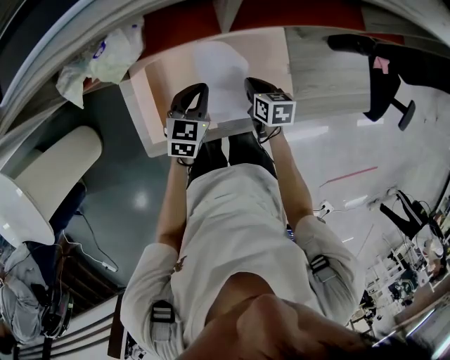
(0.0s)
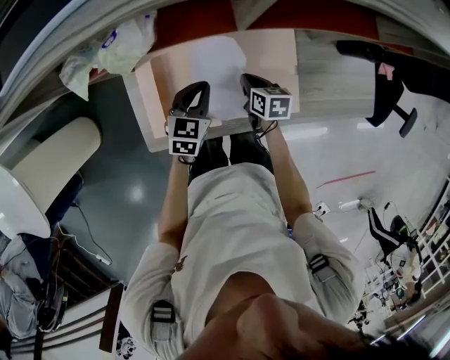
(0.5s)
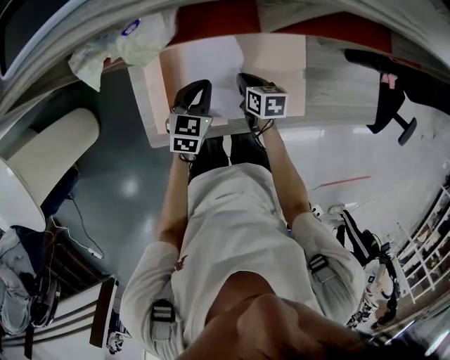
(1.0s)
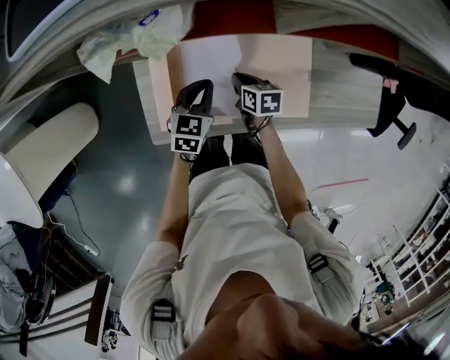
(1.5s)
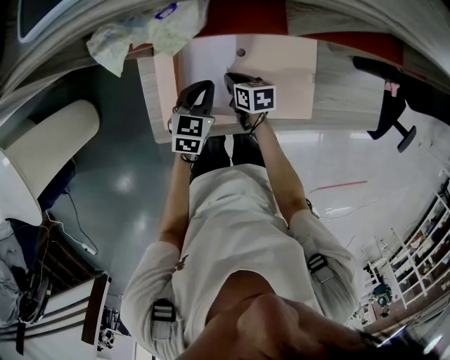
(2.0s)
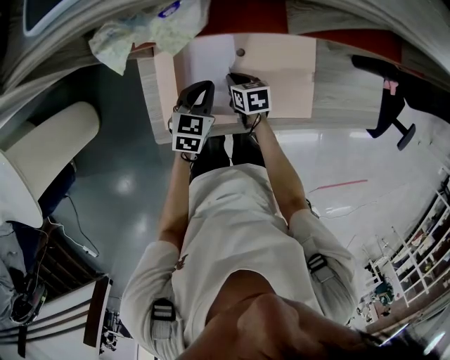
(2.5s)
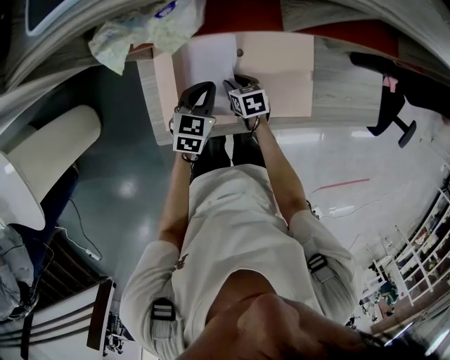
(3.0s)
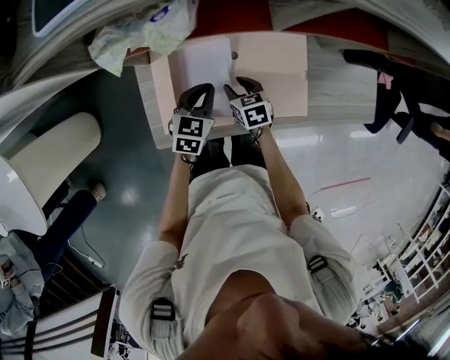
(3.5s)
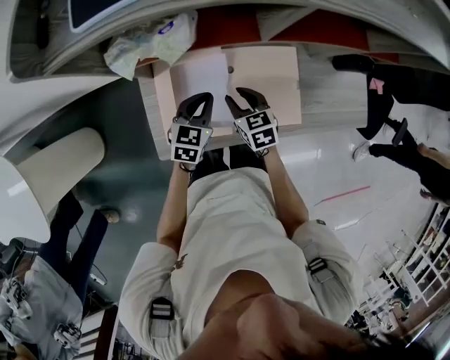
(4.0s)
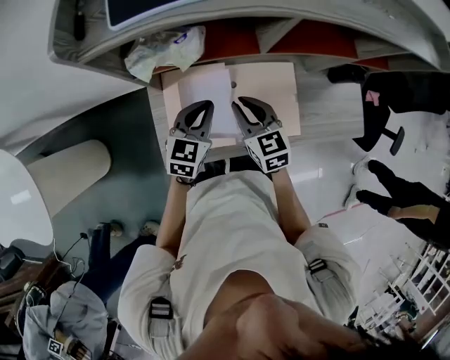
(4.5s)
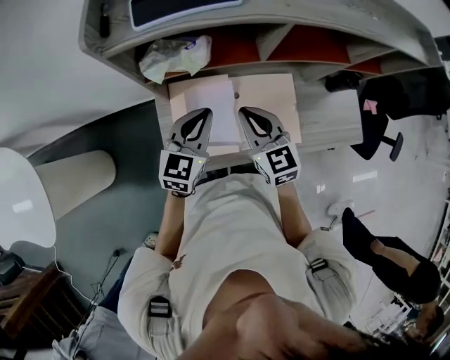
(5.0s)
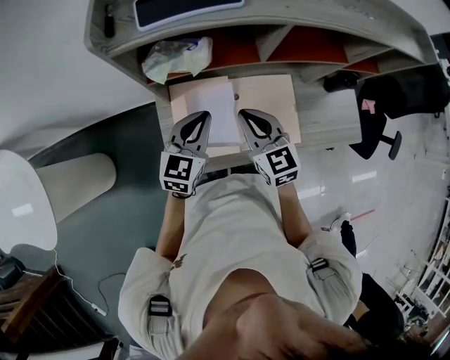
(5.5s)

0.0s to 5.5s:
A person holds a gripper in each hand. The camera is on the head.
0.0s to 2.0s: The right gripper goes some 15 cm to the left. The left gripper shifts about 5 cm to the left.
2.0s to 3.5s: The right gripper swivels some 20 degrees, and opens.
3.5s to 5.5s: Both grippers travel together upward, some 25 cm. The right gripper angles its fingers upward, by about 30 degrees, and closes its fingers. The left gripper changes its angle by some 20 degrees.

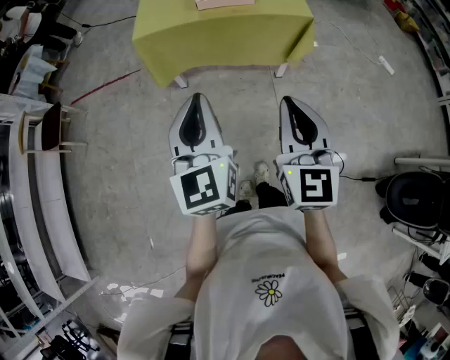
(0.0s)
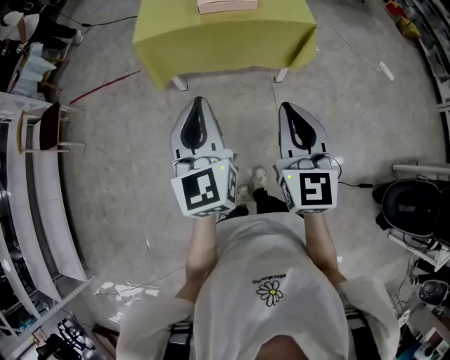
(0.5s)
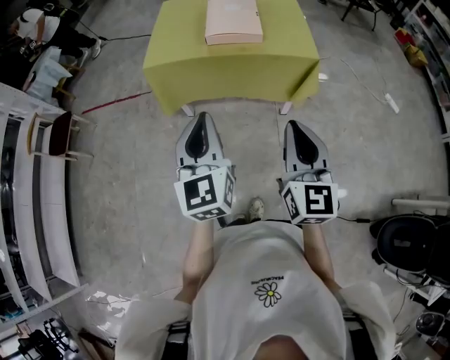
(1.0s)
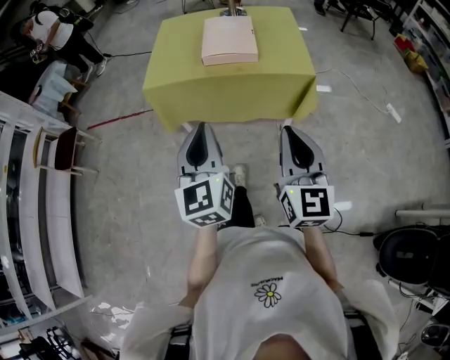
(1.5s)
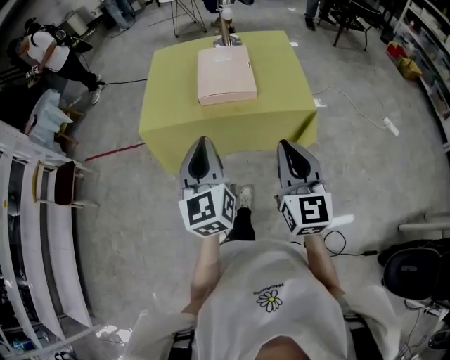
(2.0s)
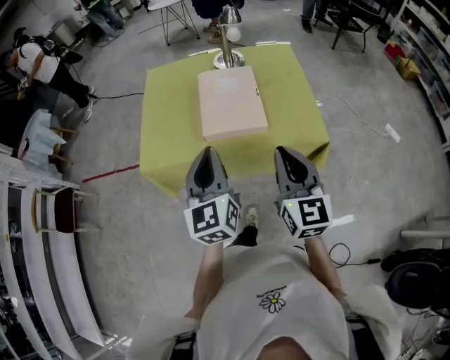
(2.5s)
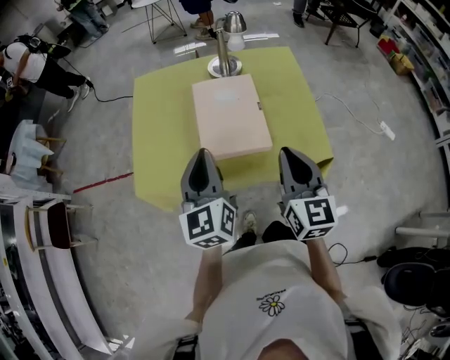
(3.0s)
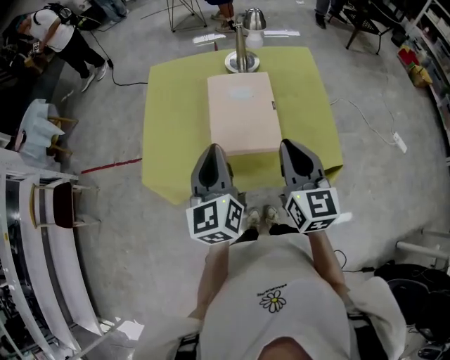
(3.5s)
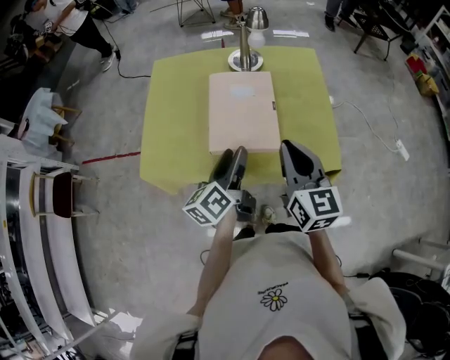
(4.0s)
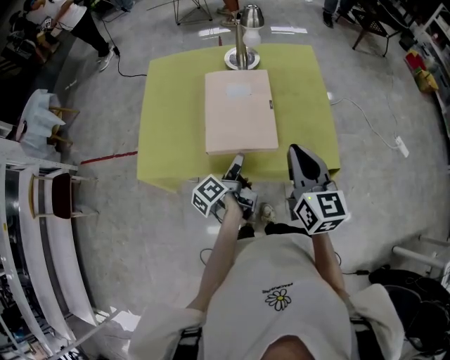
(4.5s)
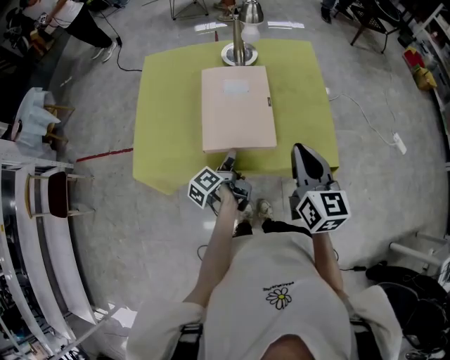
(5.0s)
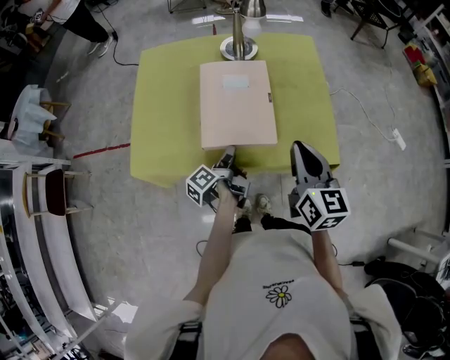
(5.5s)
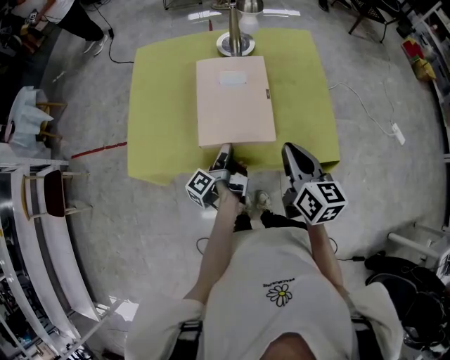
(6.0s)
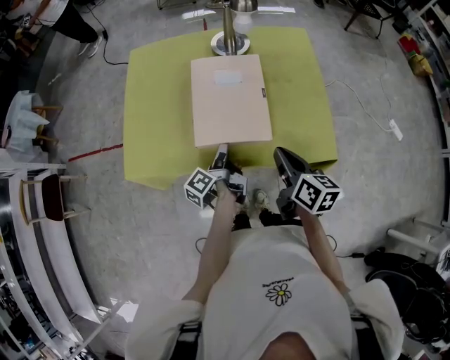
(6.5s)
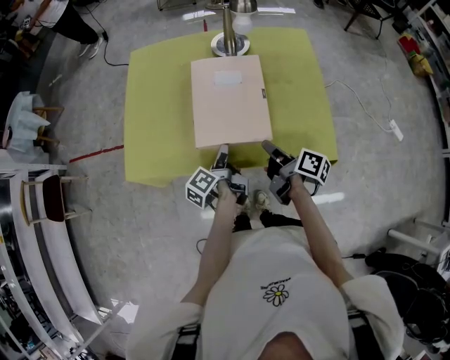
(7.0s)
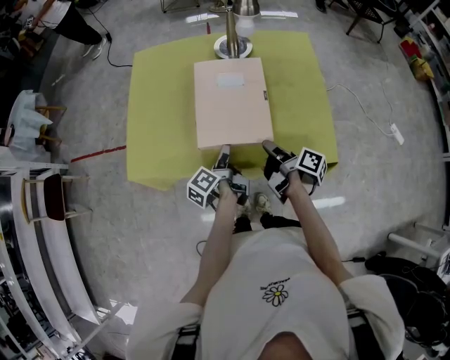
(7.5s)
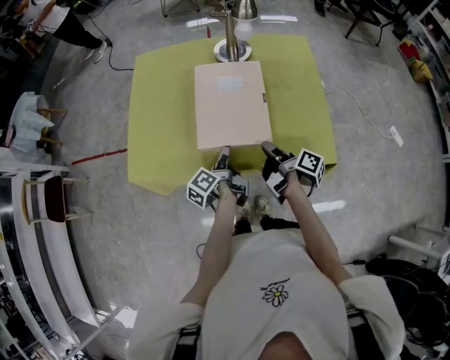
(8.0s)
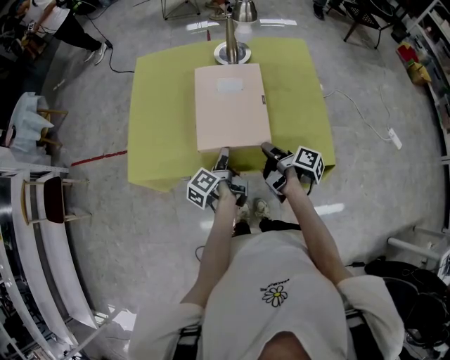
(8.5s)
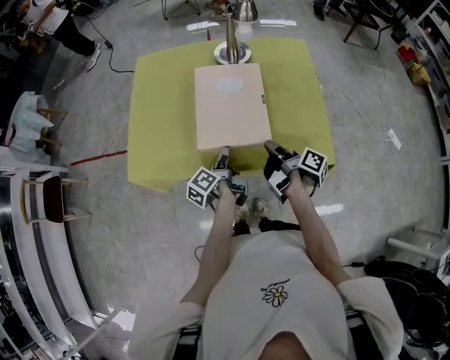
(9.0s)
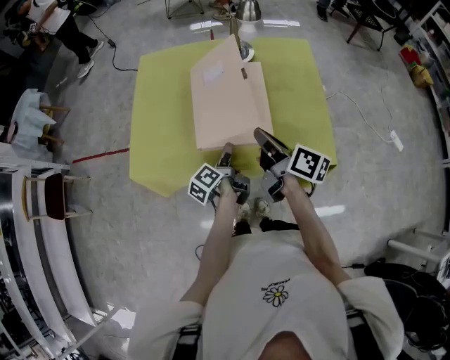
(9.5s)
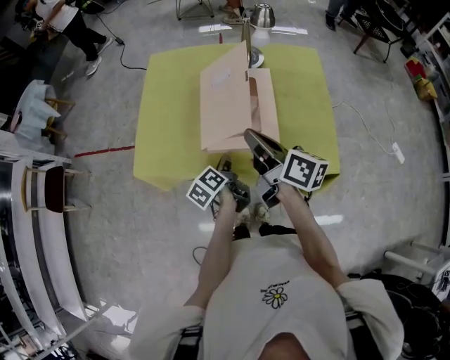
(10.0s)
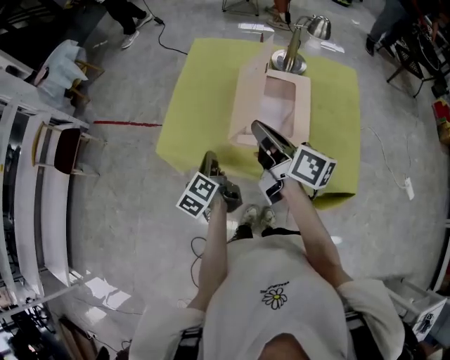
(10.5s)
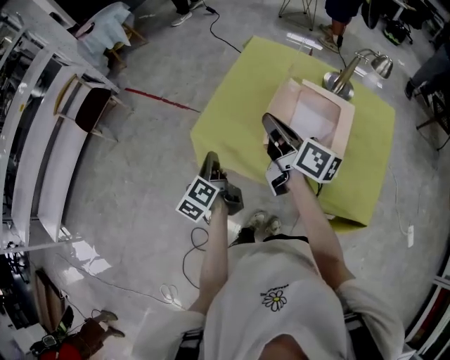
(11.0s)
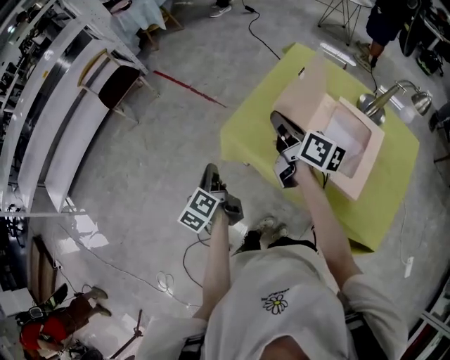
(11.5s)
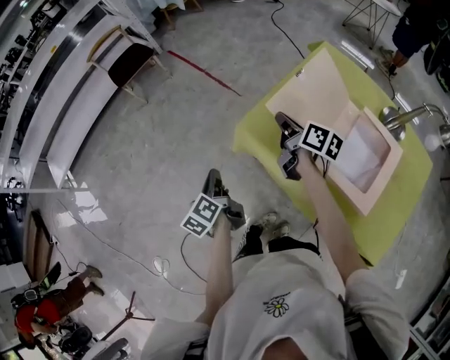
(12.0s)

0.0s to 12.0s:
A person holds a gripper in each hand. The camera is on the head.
0.0s to 2.0s: The two grippers go roughly 25 cm forward.
2.0s to 4.0s: Both grippers travel together forward, approximately 30 cm. The left gripper twists some 50 degrees counterclockwise, seen from behind, and opens its fingers.
4.0s to 6.0s: The left gripper is displaced downward by about 15 cm, and rotates around the line of its fingers by roughly 50 degrees, counterclockwise from behind; the right gripper shifts roughly 10 cm downward.
6.0s to 8.0s: The right gripper is displaced downward by roughly 15 cm, and rotates around the line of its fingers by roughly 60 degrees, clockwise from behind.
8.0s to 10.0s: The left gripper closes up; the right gripper is displaced upward and to the left by approximately 20 cm, and turns by about 40 degrees.
10.0s to 12.0s: The left gripper ends up roughly 40 cm from where it was, and turns by some 50 degrees, while the right gripper changes place by approximately 35 cm, and turns by some 40 degrees.

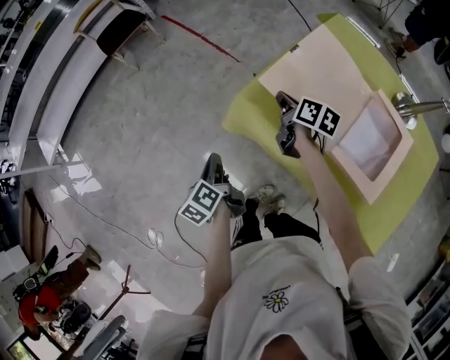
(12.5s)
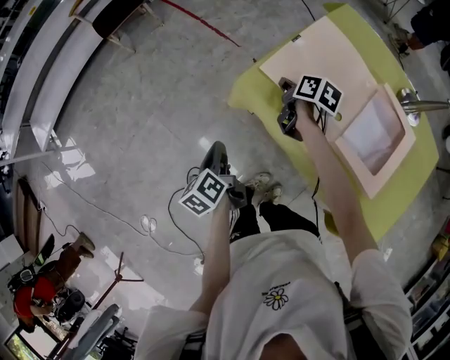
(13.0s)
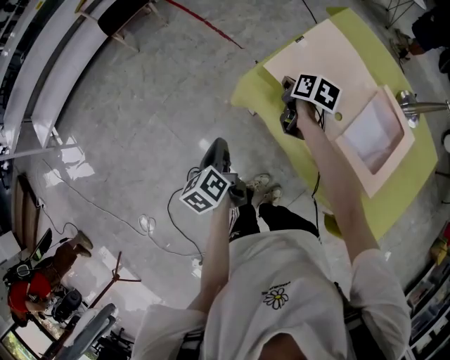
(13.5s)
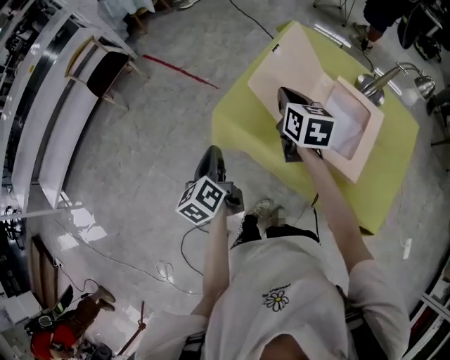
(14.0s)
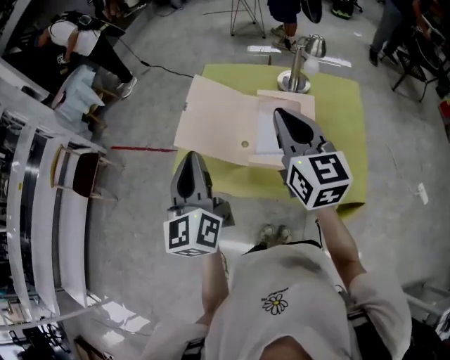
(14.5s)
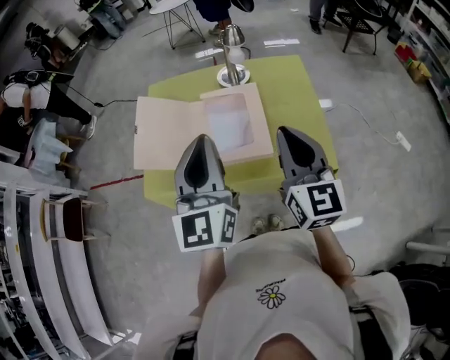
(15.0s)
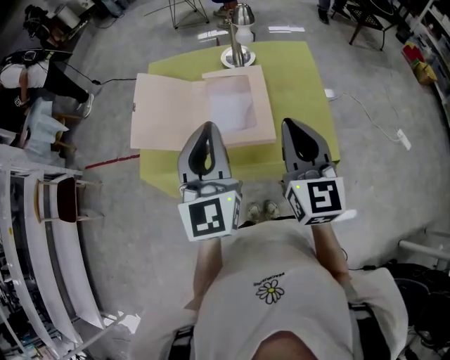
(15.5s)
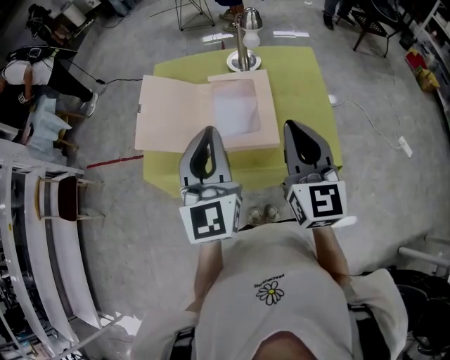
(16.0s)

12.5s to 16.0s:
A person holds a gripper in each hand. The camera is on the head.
12.5s to 14.5s: Both grippers move upward, approximately 30 cm. The left gripper tilts its fingers roughly 30 degrees upward. The right gripper turns by about 60 degrees.
14.5s to 16.0s: The right gripper heads to the right and backward, covering about 15 cm, while the left gripper shifts some 15 cm to the right, and swivels some 20 degrees.

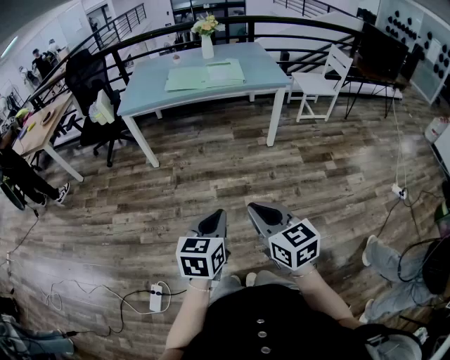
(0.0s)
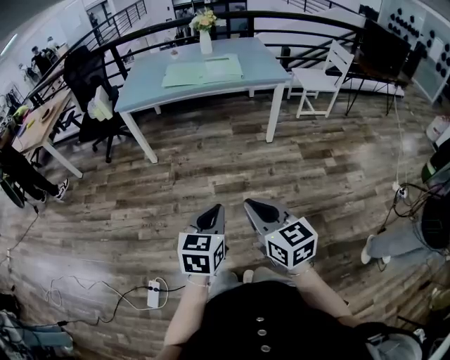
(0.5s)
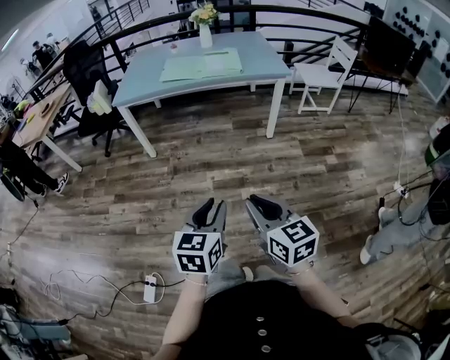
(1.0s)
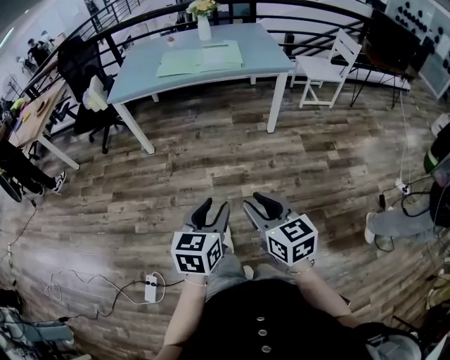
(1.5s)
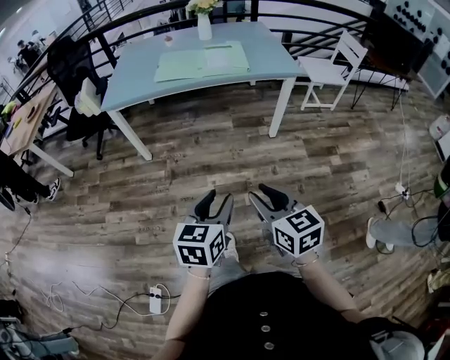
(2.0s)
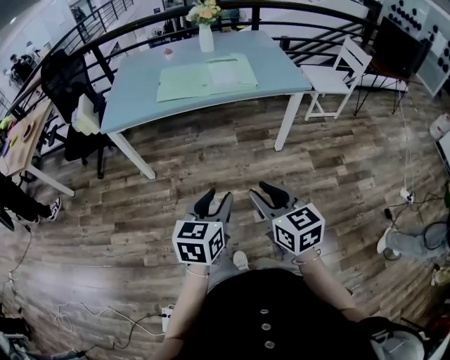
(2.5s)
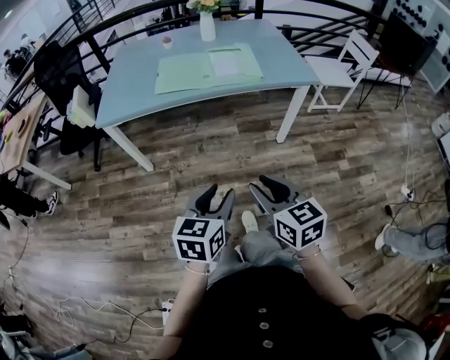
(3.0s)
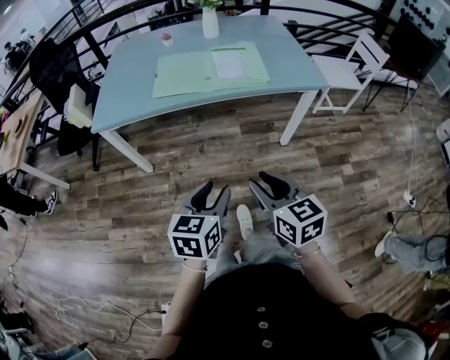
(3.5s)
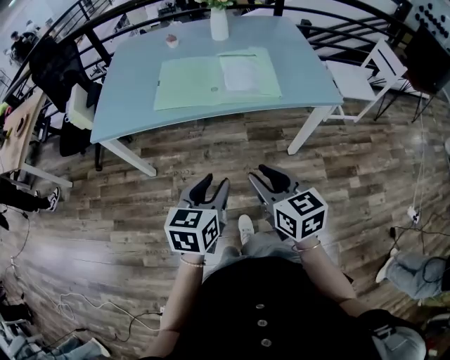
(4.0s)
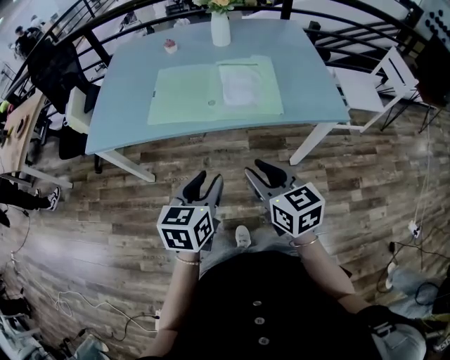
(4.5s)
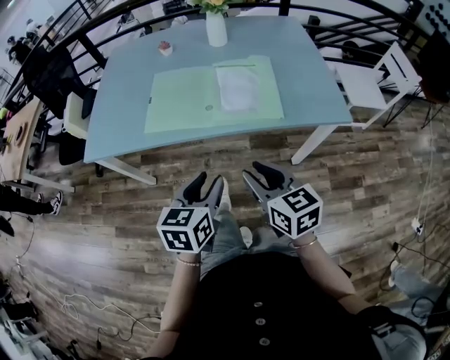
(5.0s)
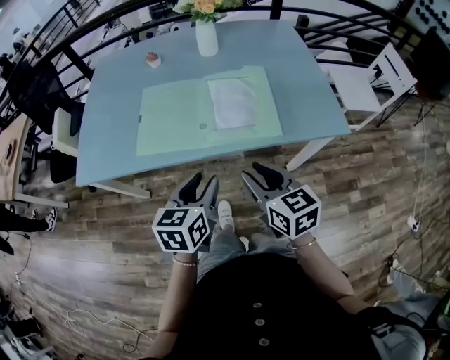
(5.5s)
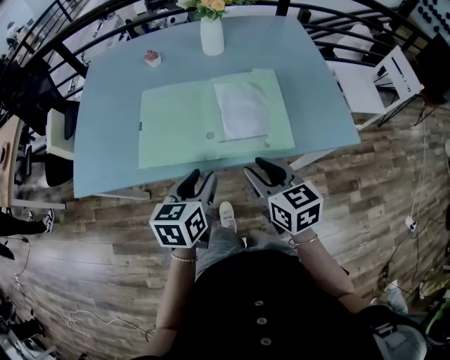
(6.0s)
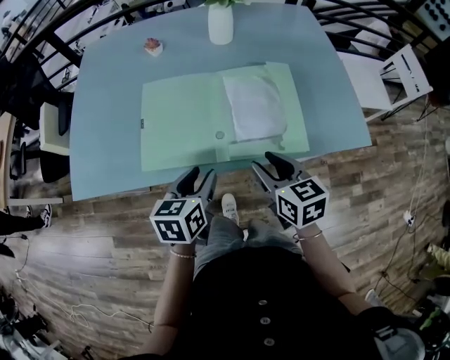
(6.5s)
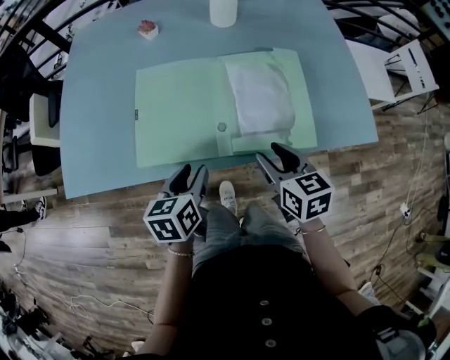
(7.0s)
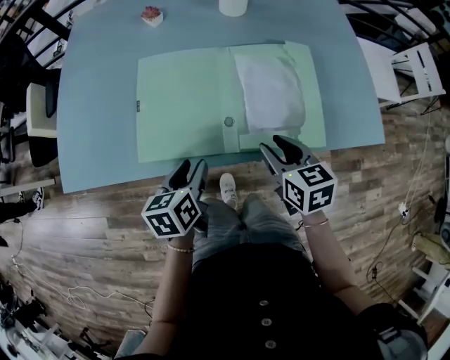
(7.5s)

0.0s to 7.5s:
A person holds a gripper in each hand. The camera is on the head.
0.0s to 2.0s: Both grippers move forward, some 20 cm. The left gripper opens its fingers. The right gripper opens its fingers.
2.0s to 4.0s: The grippers both shift forward by about 40 cm.
4.0s to 5.5s: The grippers both shift forward by about 20 cm.
5.5s to 7.5s: The right gripper heads forward and downward, covering about 20 cm; the left gripper travels forward, downward and to the left by approximately 25 cm, and rotates about 20 degrees.
